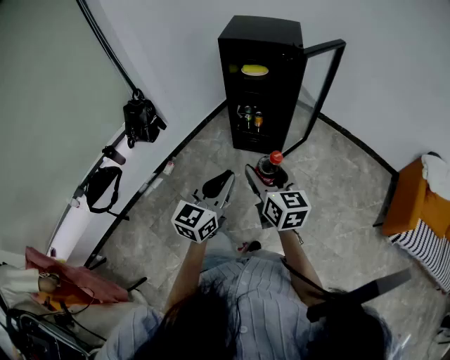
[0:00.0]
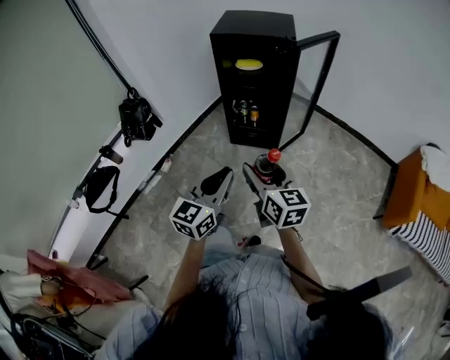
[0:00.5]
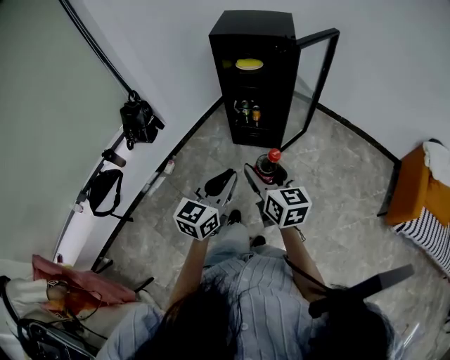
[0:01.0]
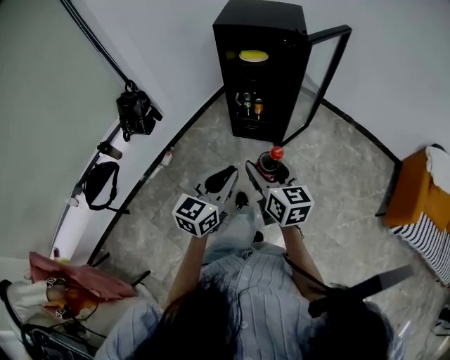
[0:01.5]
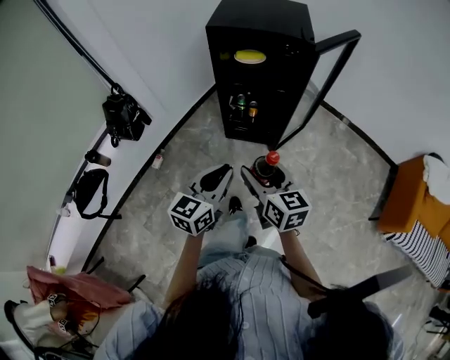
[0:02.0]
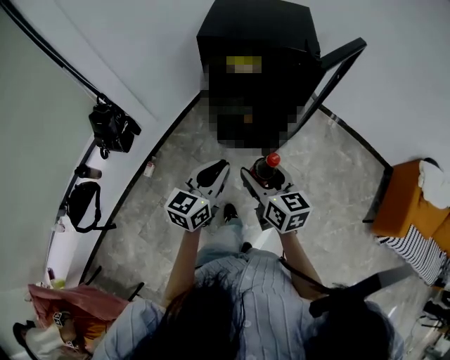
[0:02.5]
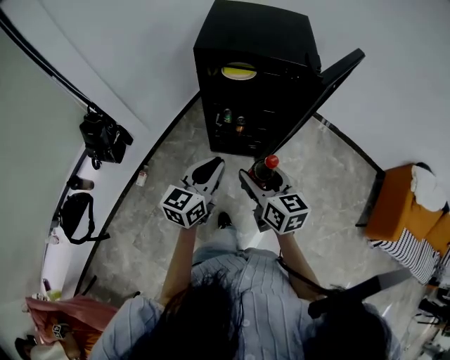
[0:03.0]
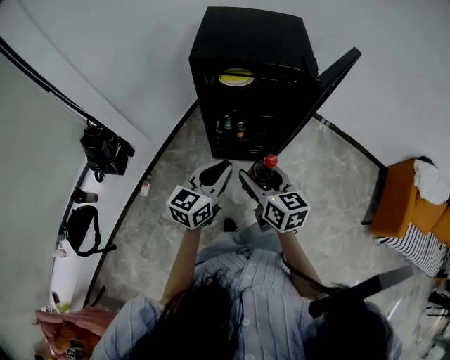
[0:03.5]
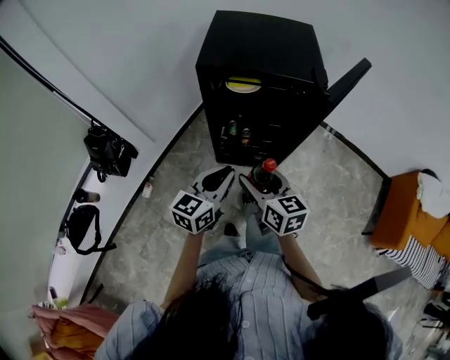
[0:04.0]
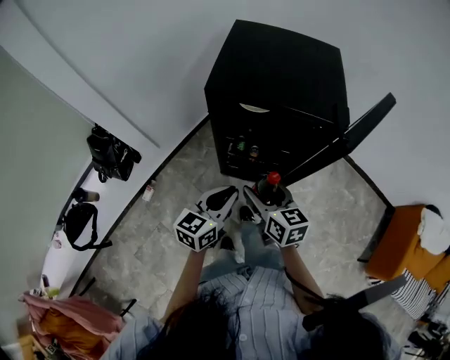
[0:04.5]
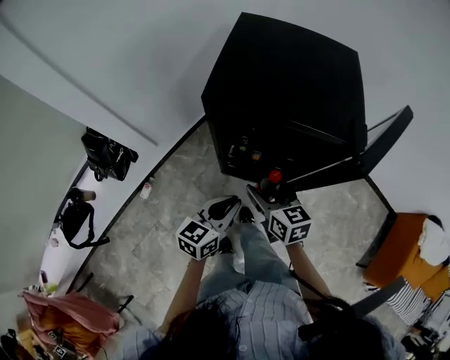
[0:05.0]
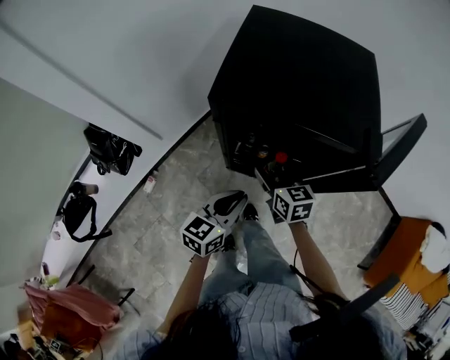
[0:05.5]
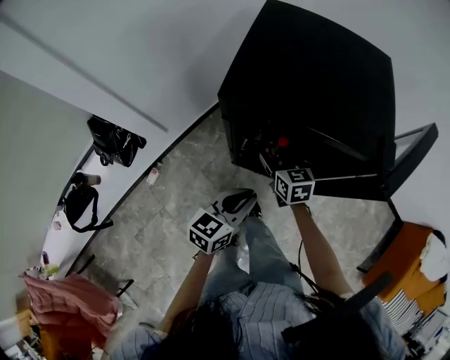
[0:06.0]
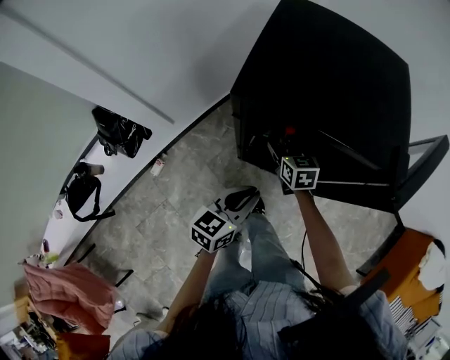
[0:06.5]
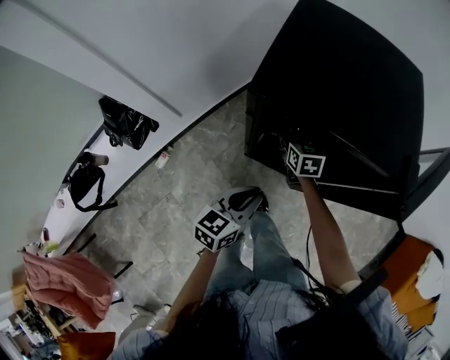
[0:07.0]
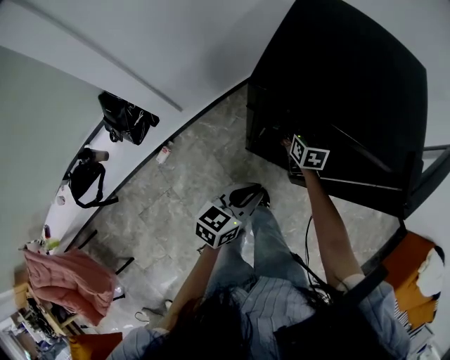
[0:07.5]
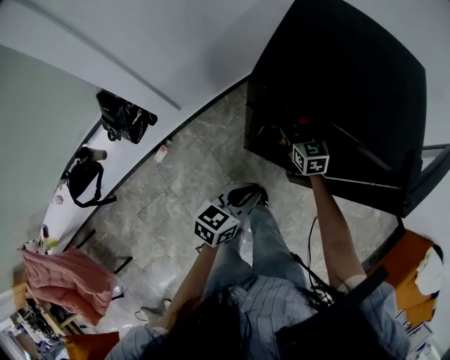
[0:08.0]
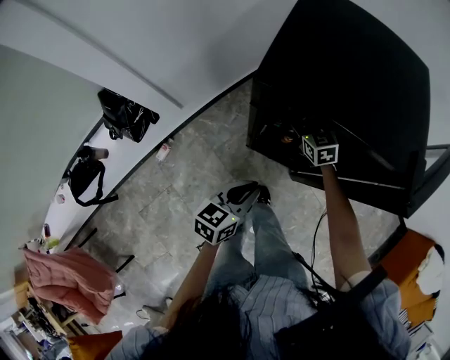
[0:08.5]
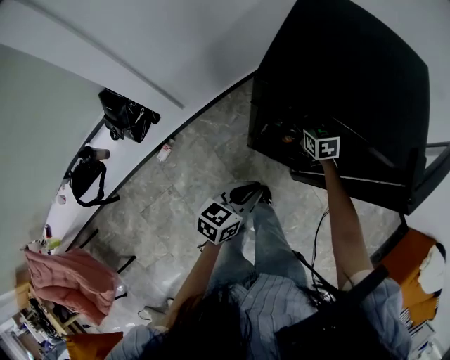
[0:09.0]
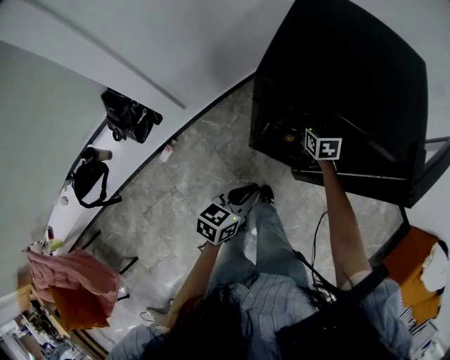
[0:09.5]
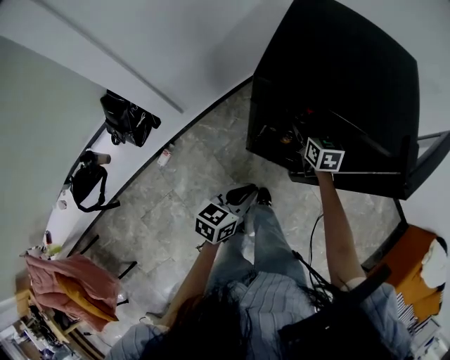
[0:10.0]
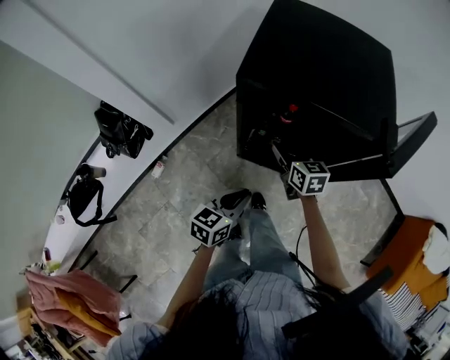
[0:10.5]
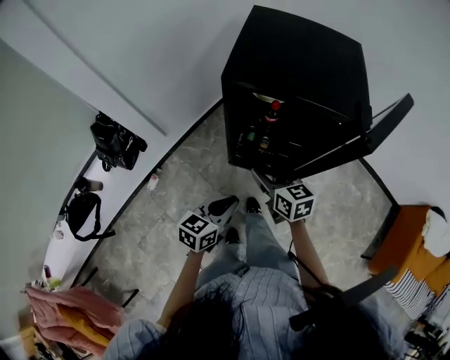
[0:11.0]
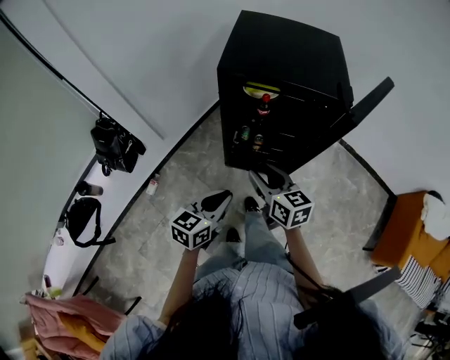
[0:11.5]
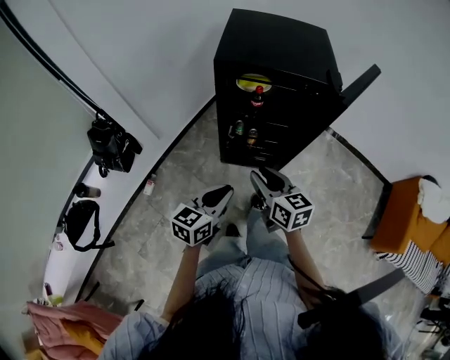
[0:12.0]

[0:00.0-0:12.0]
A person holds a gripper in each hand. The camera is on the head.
0:00.0 to 0:02.0: Both grippers travel together forward, roughly 15 cm.
0:02.0 to 0:04.0: Both grippers move forward, some 20 cm.
0:04.0 to 0:06.0: The left gripper moves forward and downward, approximately 15 cm; the right gripper heads forward and downward, covering some 30 cm.
0:06.0 to 0:08.0: The right gripper travels forward by approximately 10 cm.
0:08.0 to 0:10.0: The right gripper ends up approximately 5 cm from where it was.
0:10.0 to 0:12.0: The right gripper moves backward, about 35 cm, and closes up, while the left gripper is displaced backward and upward by approximately 15 cm.

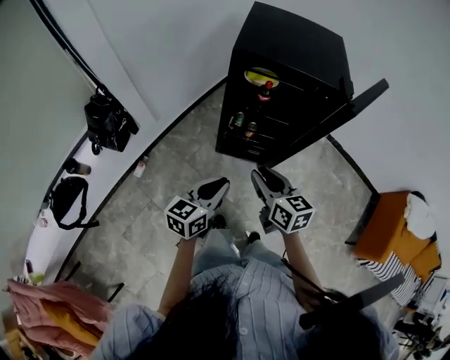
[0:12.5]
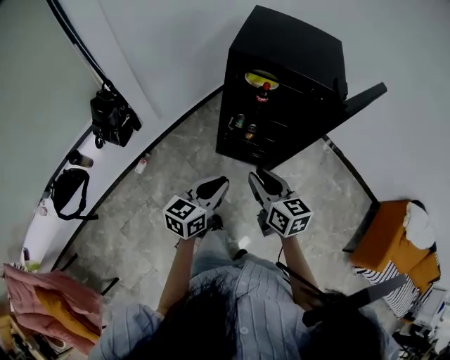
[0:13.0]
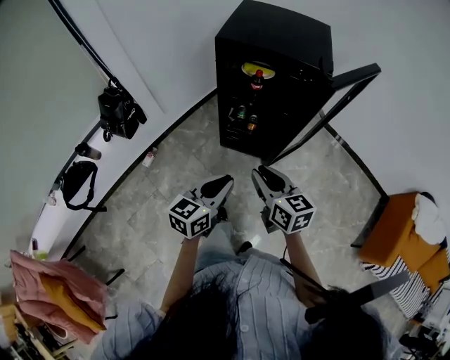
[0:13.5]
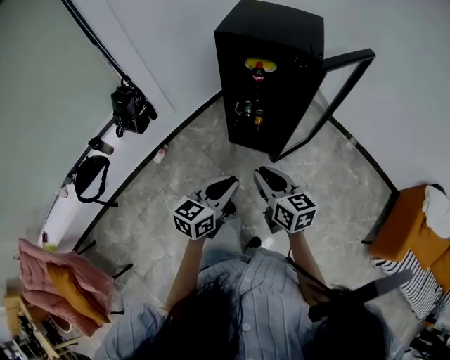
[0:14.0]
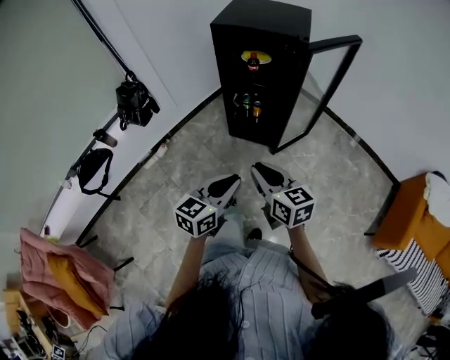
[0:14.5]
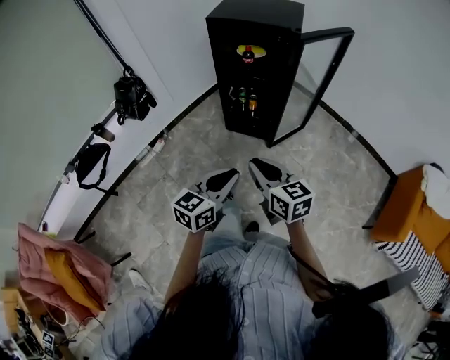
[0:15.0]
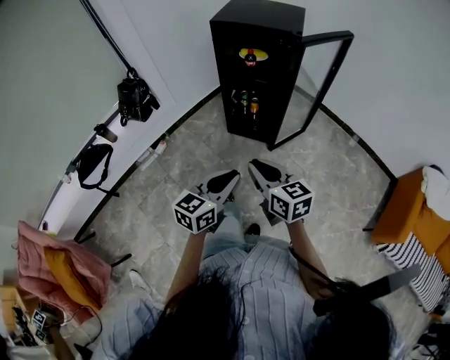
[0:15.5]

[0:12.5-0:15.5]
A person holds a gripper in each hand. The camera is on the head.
0:12.5 to 0:14.0: Both grippers travel together backward and to the right, roughly 20 cm.
0:14.0 to 0:15.5: Both grippers travel together backward, some 15 cm.

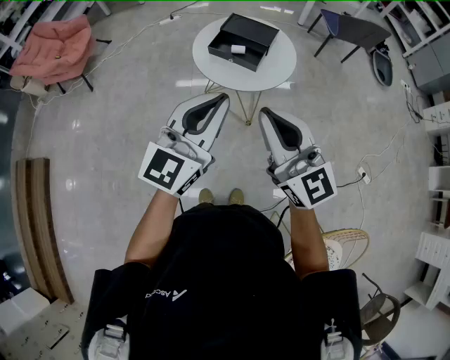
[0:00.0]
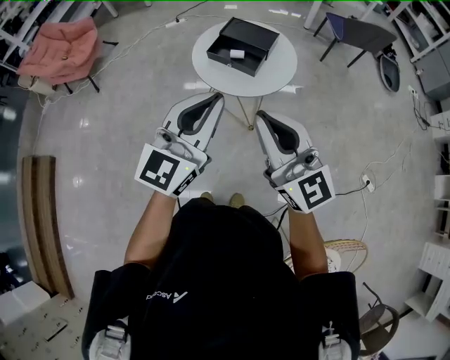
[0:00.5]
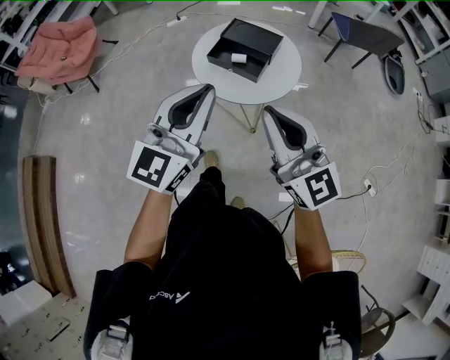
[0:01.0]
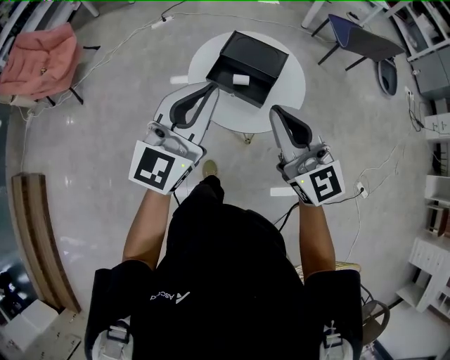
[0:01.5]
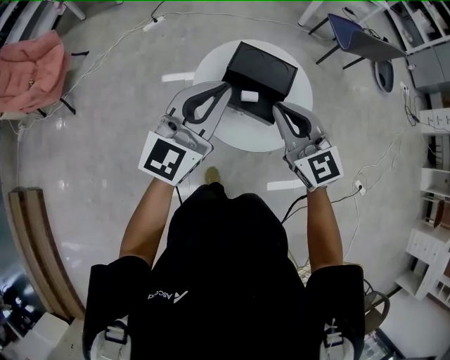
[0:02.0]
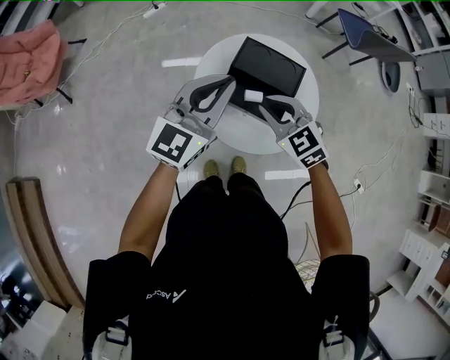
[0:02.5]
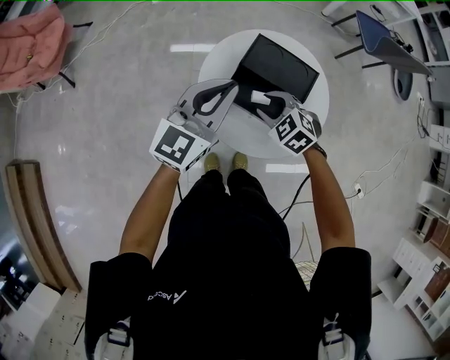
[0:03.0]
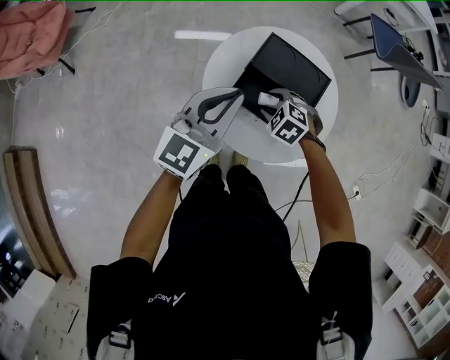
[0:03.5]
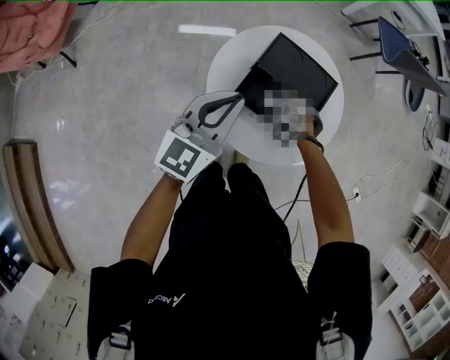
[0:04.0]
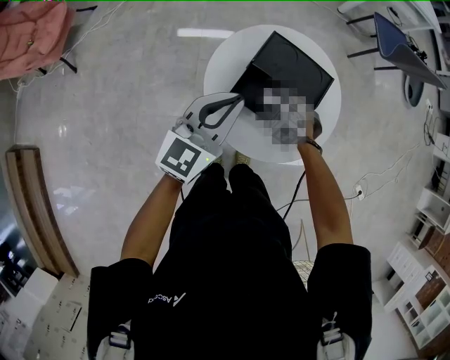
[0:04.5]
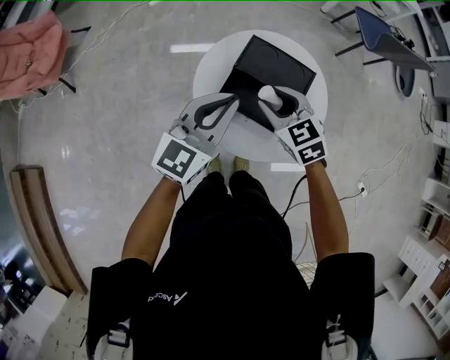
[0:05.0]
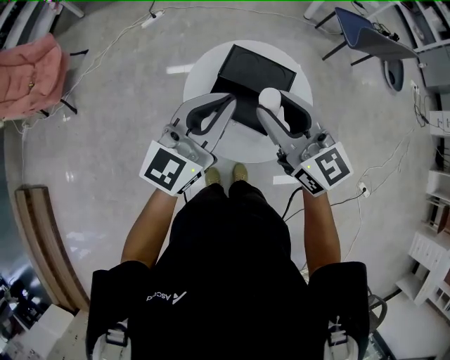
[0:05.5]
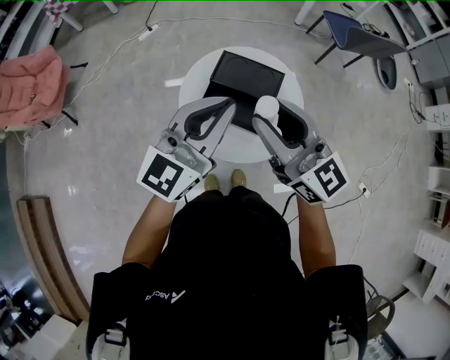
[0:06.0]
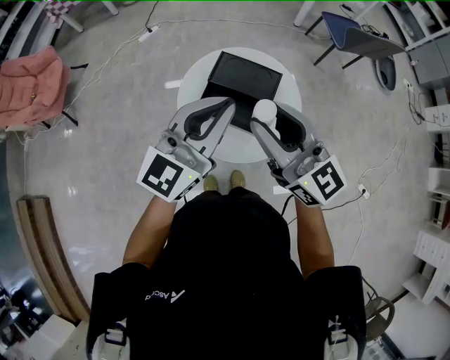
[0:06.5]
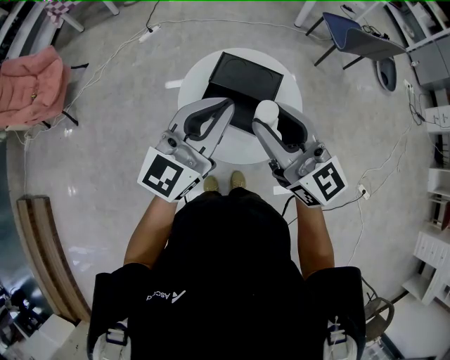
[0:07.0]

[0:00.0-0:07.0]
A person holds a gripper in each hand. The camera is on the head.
0:00.0 to 0:02.0: The two grippers travel together, forward, about 40 cm. The right gripper turns by approximately 20 degrees.
0:02.0 to 0:03.5: The left gripper goes about 20 cm downward and forward. Meanwhile the right gripper heads downward and forward, covering approximately 35 cm, points its fingers about 60 degrees further downward, and opens up.
0:03.5 to 0:05.0: The right gripper goes roughly 15 cm upward, and tilts its fingers roughly 30 degrees upward.
0:05.0 to 0:07.0: The right gripper shifts roughly 25 cm upward and backward, and angles its fingers upward, by roughly 50 degrees. Meanwhile the left gripper heads upward, to the right and backward, covering about 20 cm.

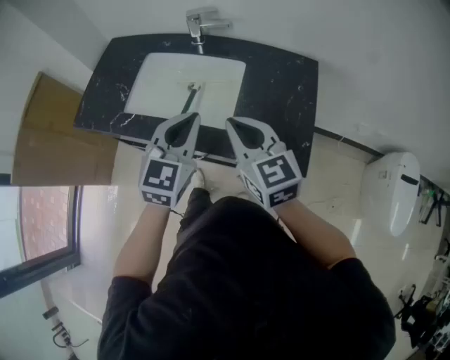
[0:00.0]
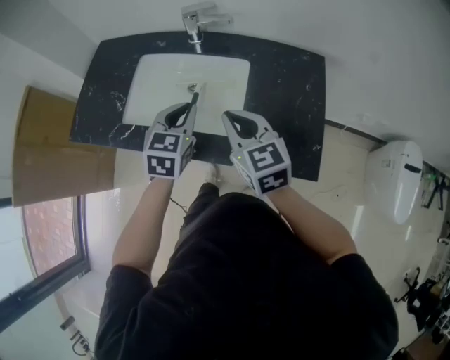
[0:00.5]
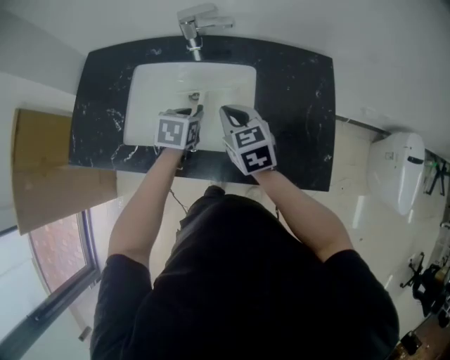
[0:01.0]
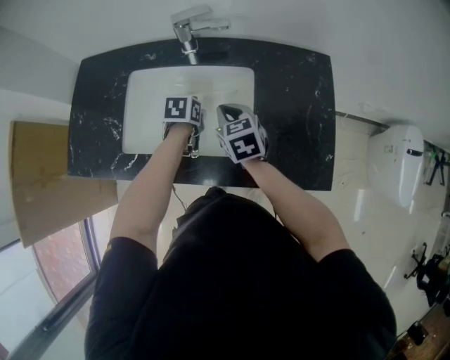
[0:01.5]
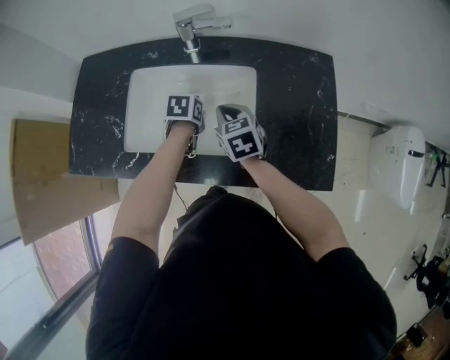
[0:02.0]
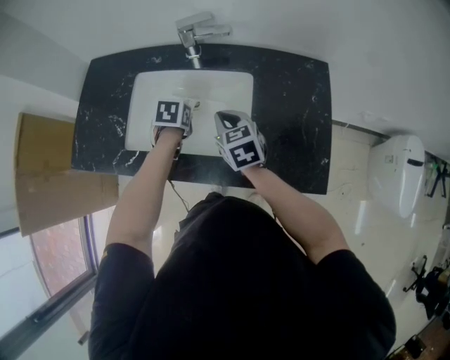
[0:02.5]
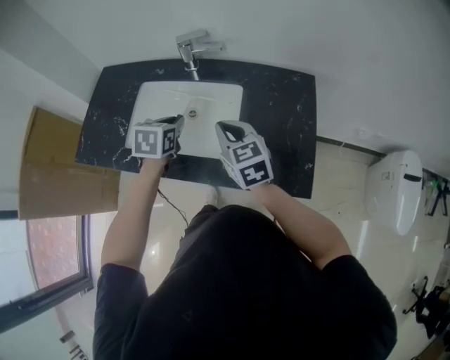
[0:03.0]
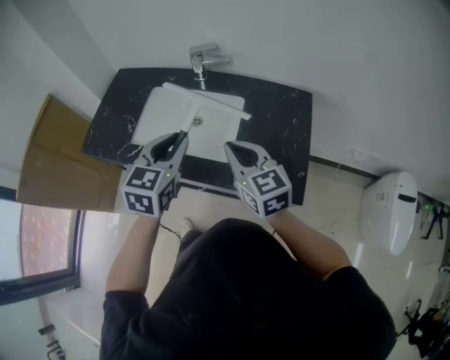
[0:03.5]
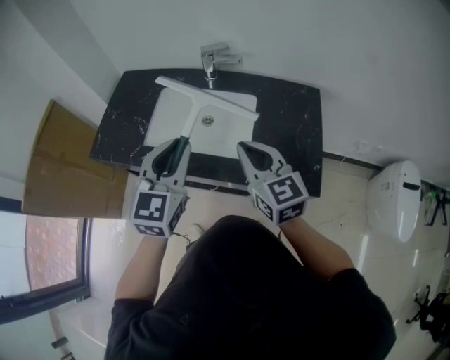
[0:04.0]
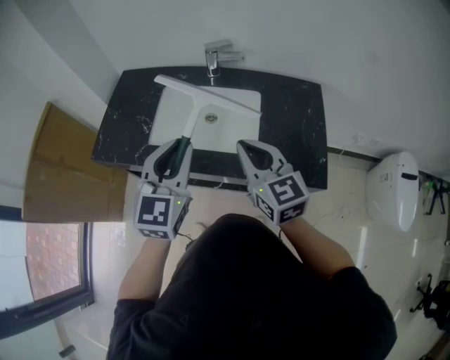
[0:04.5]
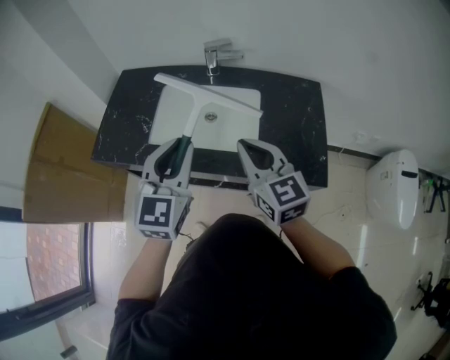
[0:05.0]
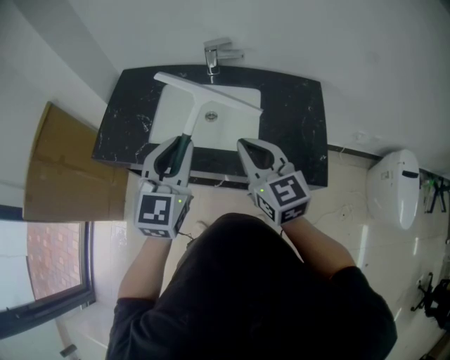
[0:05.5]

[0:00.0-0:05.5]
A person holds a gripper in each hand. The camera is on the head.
0:00.0 to 0:02.0: The right gripper goes roughly 30 cm forward, downward and to the left, and swivels approximately 30 degrees; the left gripper travels downward and forward by roughly 35 cm, tilts its fingers approximately 50 degrees downward, and opens its fingers.
0:02.0 to 0:03.5: The right gripper moves upward, backward and to the right, some 25 cm, and swivels some 30 degrees, while the left gripper moves upward and backward, some 35 cm, and tilts its fingers approximately 40 degrees upward.
0:03.5 to 0:05.5: The grippers both shift to the left by about 5 cm.
